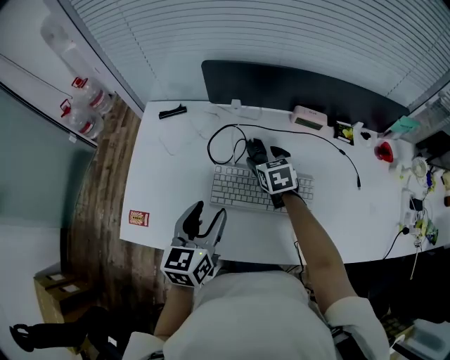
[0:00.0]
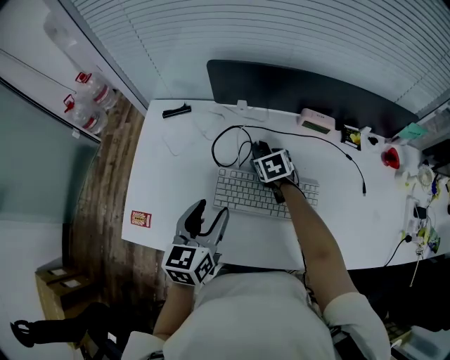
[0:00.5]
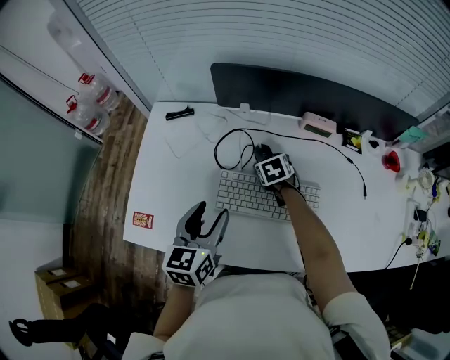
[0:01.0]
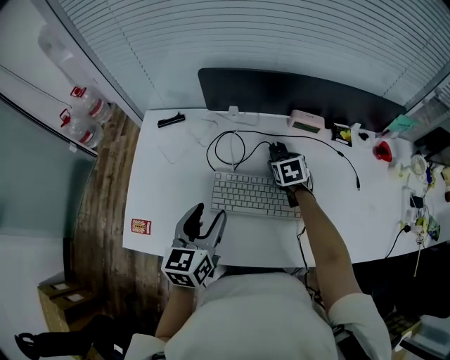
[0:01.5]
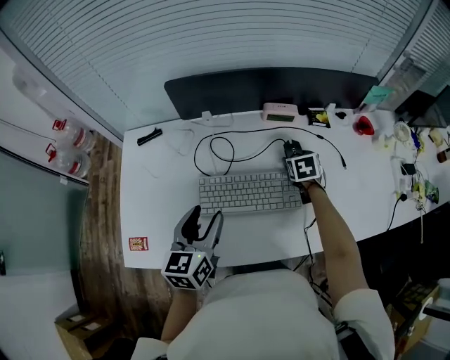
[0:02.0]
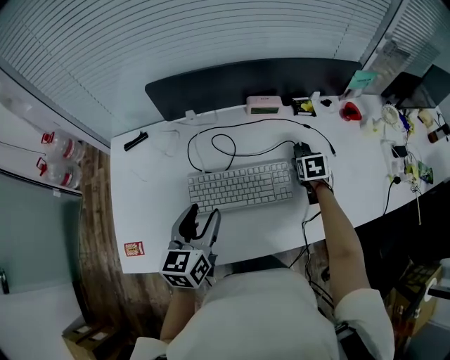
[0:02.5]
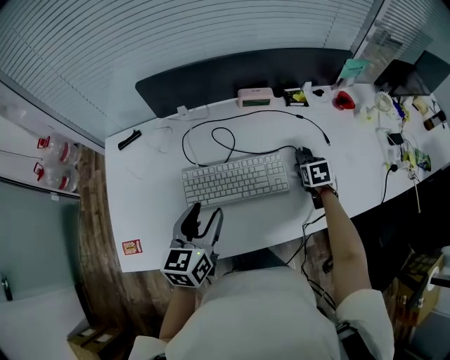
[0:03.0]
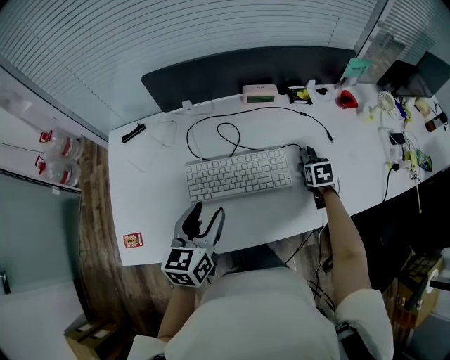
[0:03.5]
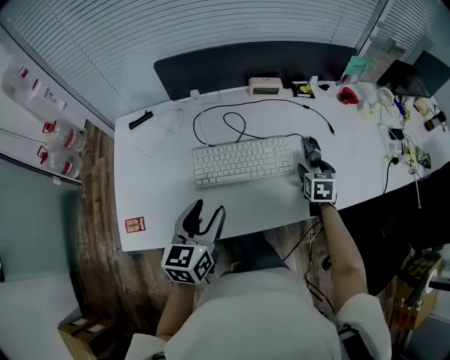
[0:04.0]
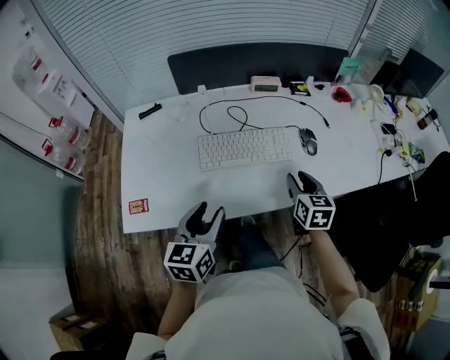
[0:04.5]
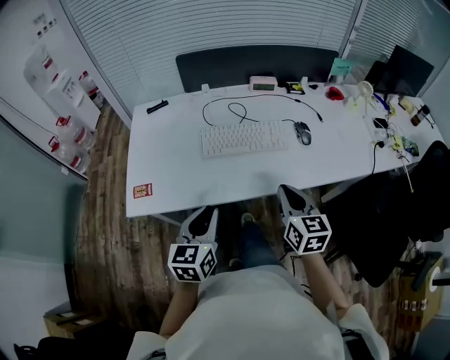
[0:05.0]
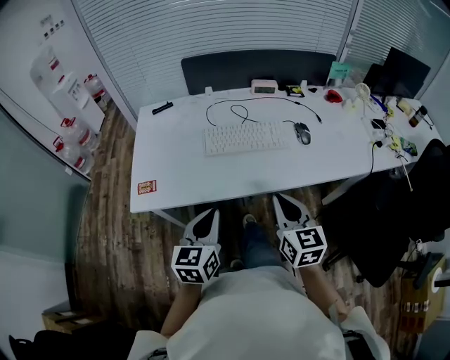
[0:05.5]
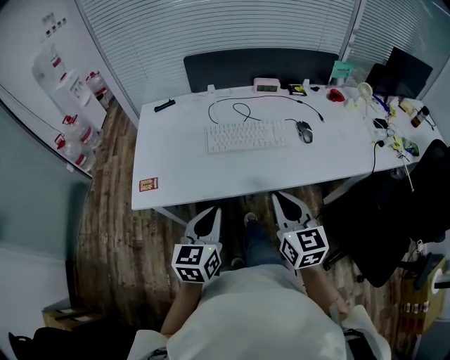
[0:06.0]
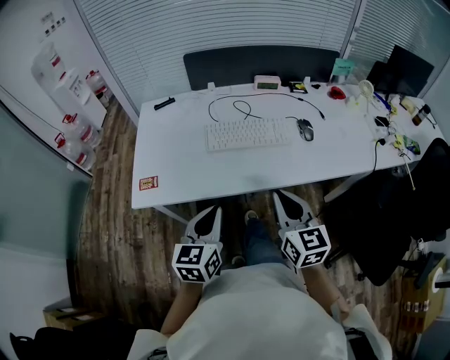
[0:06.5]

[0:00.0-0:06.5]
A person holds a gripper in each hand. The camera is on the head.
0:00.0 to 0:02.0: The right gripper goes approximately 20 cm to the right, and swivels approximately 30 degrees.
0:02.0 to 0:04.5: The left gripper travels backward by approximately 15 cm. Meanwhile the right gripper goes about 30 cm backward, swivels about 30 degrees, and closes its fingers.
0:04.5 to 0:06.5: The left gripper shifts roughly 10 cm backward, and closes its fingers. The right gripper heads backward, upward and to the left, covering roughly 25 cm, turns by roughly 20 degrees, and closes up.

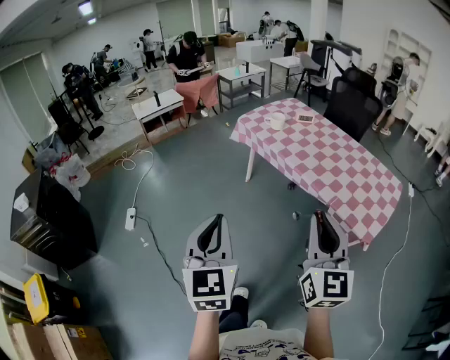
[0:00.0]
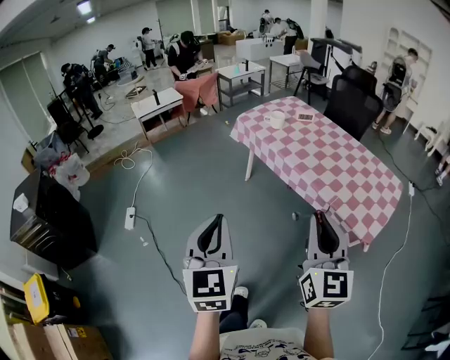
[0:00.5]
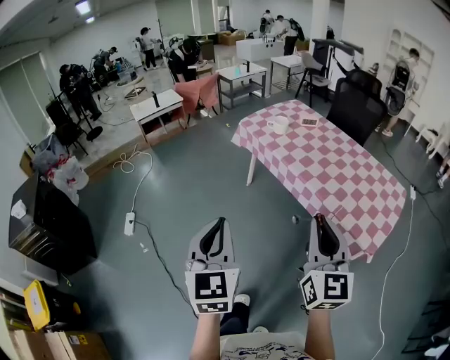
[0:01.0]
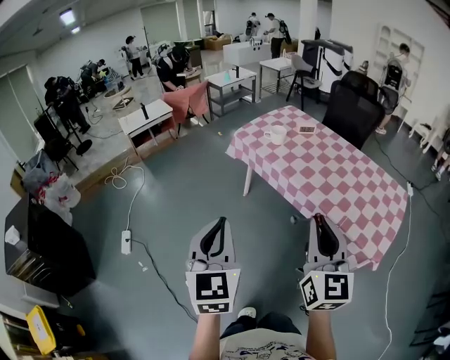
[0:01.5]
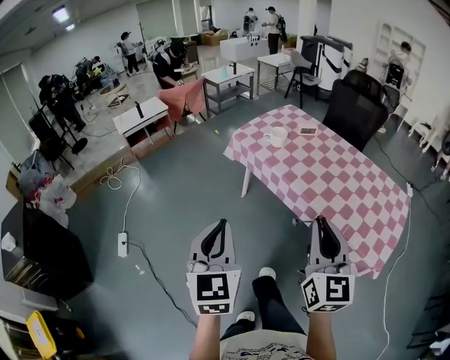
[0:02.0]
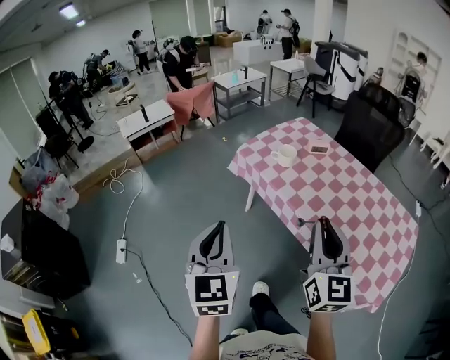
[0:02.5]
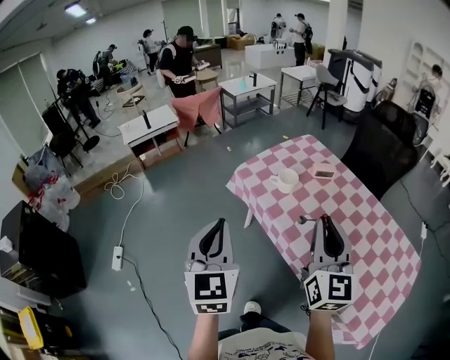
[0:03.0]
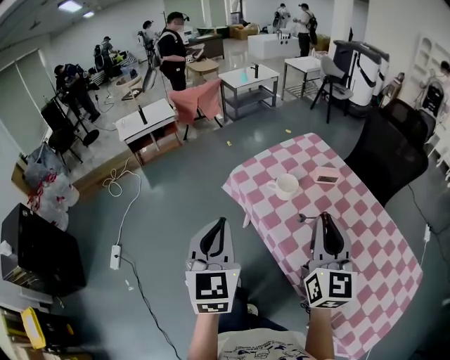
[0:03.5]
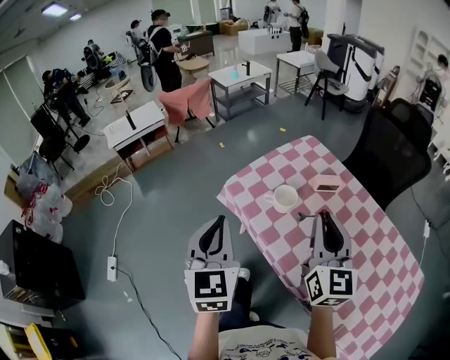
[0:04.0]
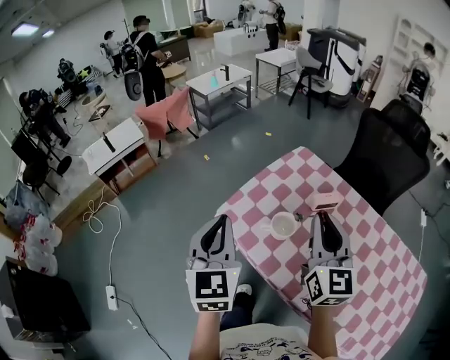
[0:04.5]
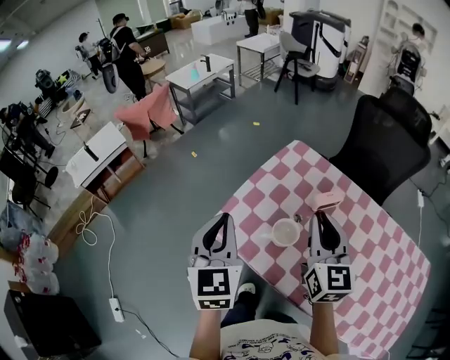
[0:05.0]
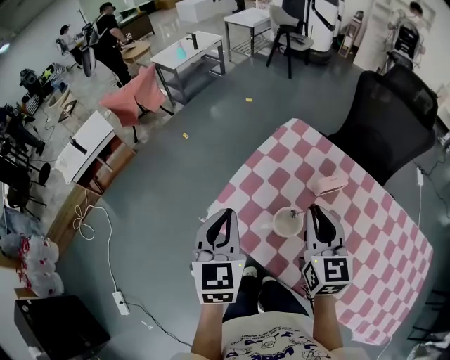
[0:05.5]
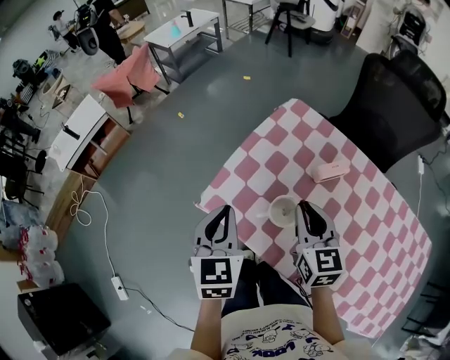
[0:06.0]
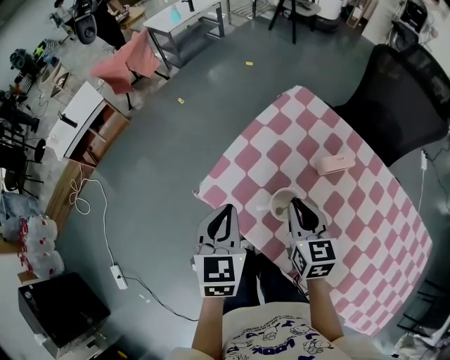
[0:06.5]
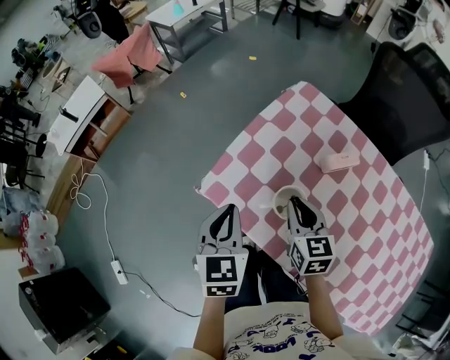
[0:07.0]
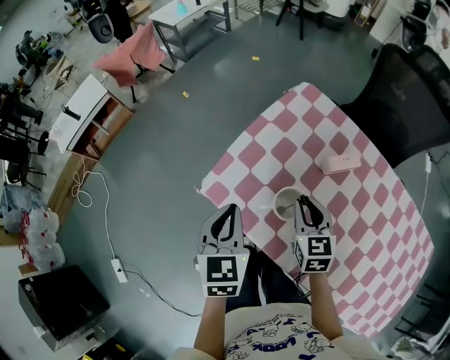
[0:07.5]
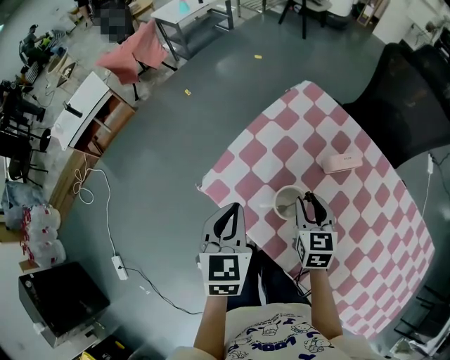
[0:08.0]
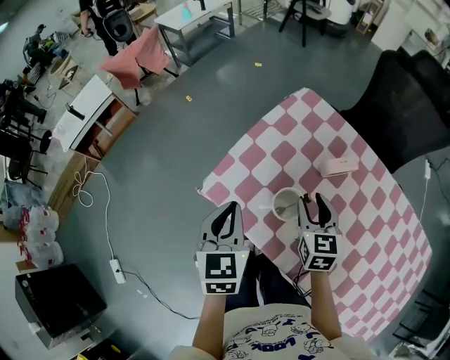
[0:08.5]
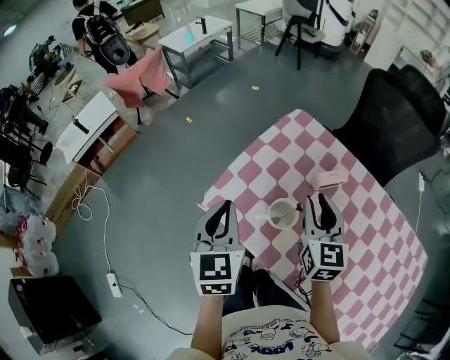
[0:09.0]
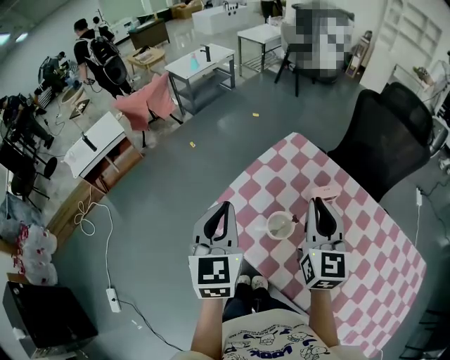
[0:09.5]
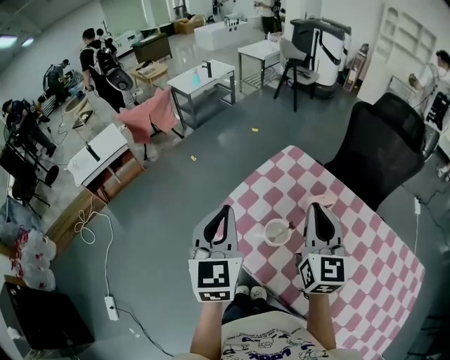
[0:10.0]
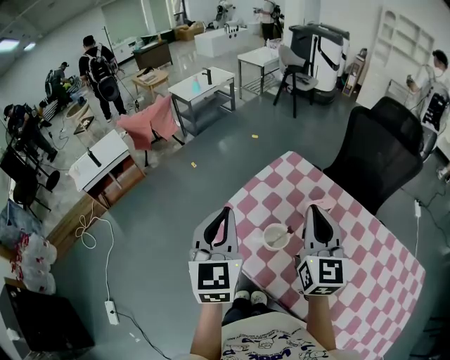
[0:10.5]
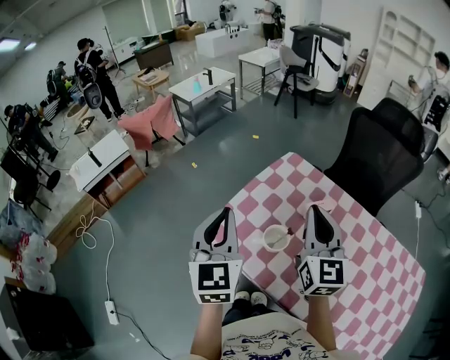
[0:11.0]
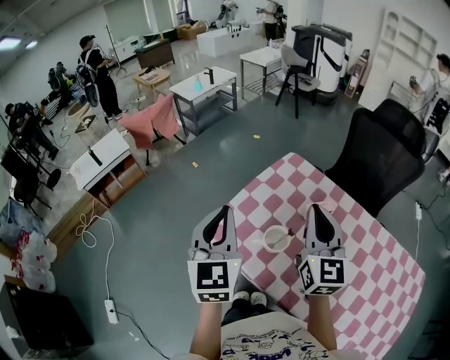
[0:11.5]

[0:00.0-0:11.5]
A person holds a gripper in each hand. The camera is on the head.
0:00.0 to 0:02.0: Both grippers move forward, some 25 cm.
0:02.0 to 0:04.0: The two grippers travel together, forward, some 50 cm.
0:04.0 to 0:06.0: The grippers both shift forward and downward by about 30 cm. The right gripper turns by approximately 20 degrees. Meanwhile the left gripper swivels some 20 degrees.
0:06.0 to 0:07.5: The left gripper travels downward by about 5 cm. The right gripper goes about 10 cm downward.
0:07.5 to 0:09.5: The two grippers go some 20 cm upward. The right gripper swivels some 30 degrees, and opens, then closes once more.
0:09.5 to 0:11.5: The left gripper goes approximately 5 cm upward. Meanwhile the right gripper ends up approximately 5 cm from where it was.

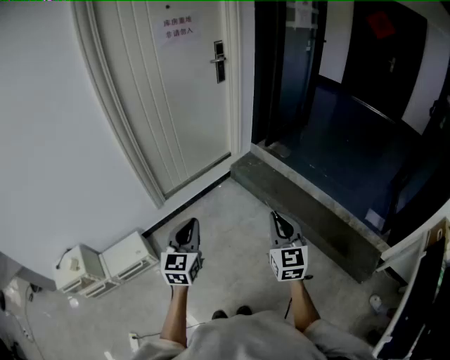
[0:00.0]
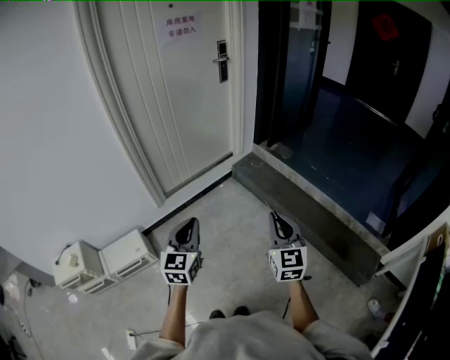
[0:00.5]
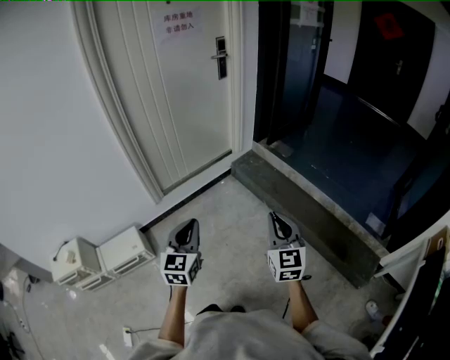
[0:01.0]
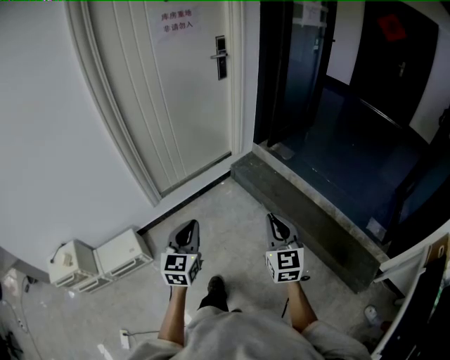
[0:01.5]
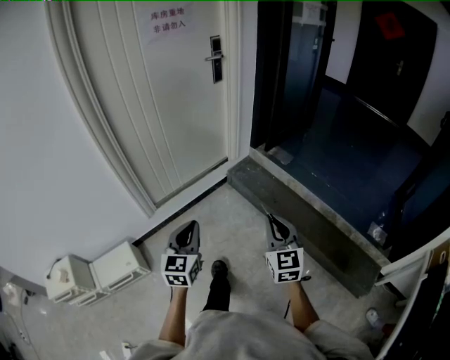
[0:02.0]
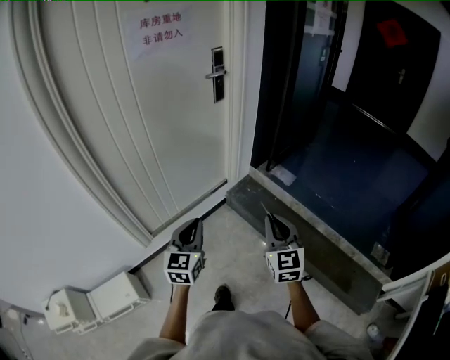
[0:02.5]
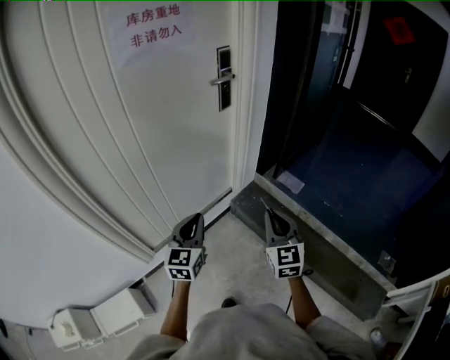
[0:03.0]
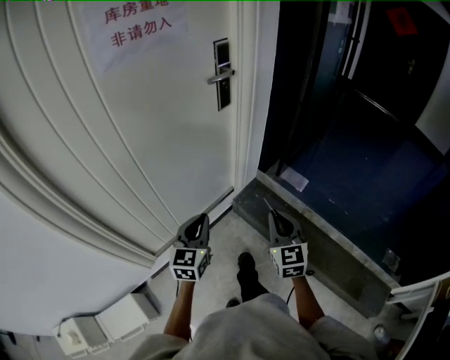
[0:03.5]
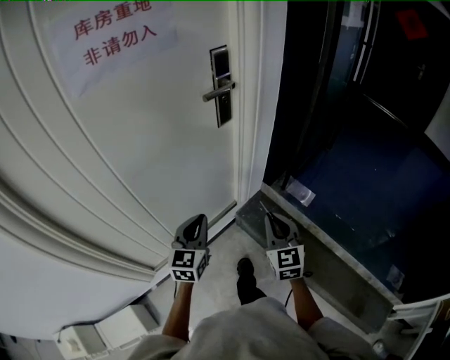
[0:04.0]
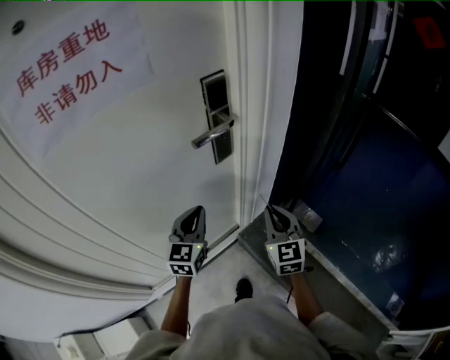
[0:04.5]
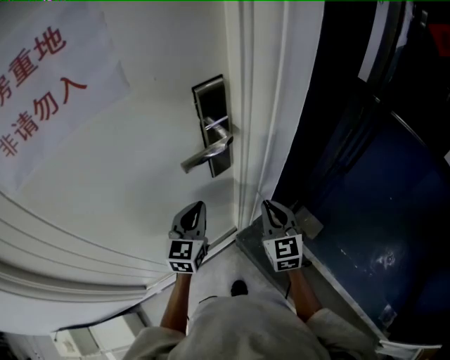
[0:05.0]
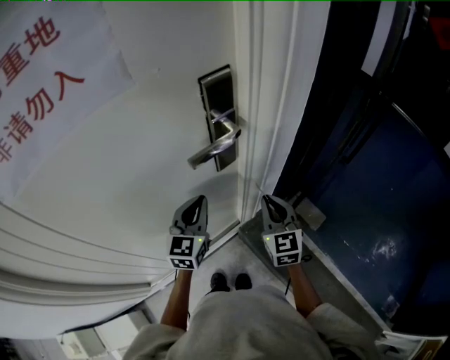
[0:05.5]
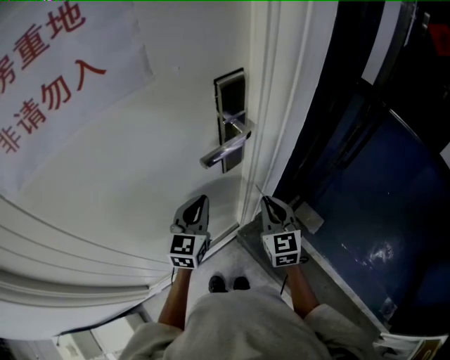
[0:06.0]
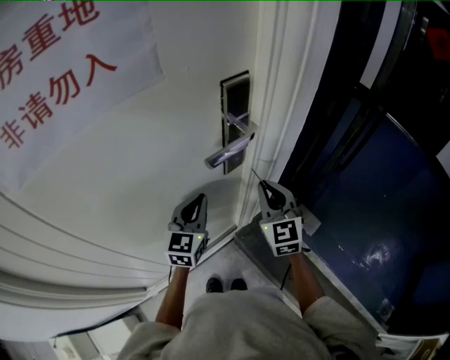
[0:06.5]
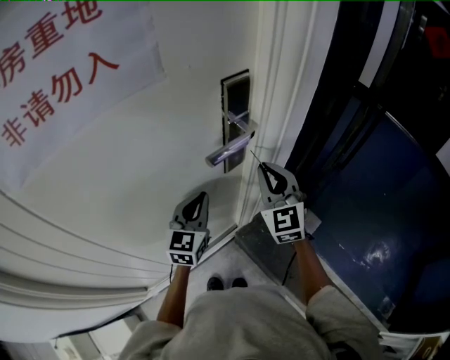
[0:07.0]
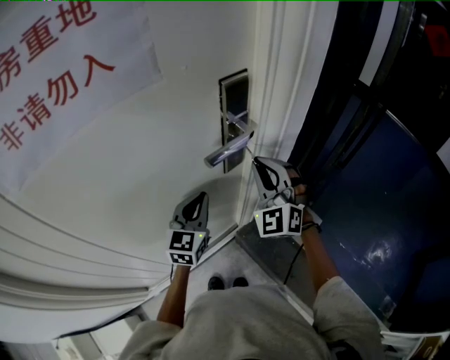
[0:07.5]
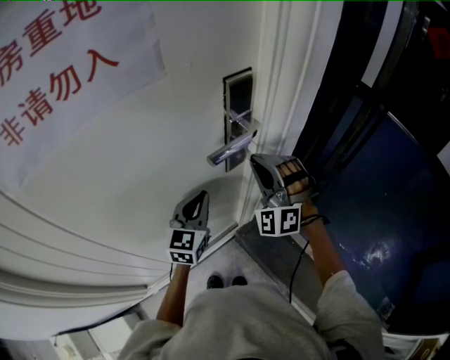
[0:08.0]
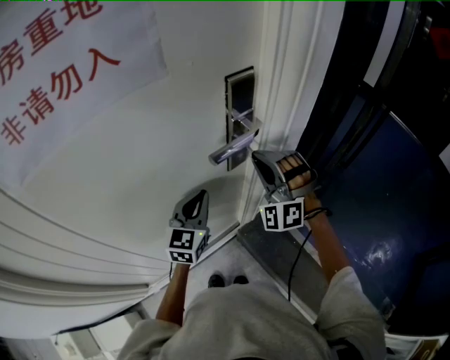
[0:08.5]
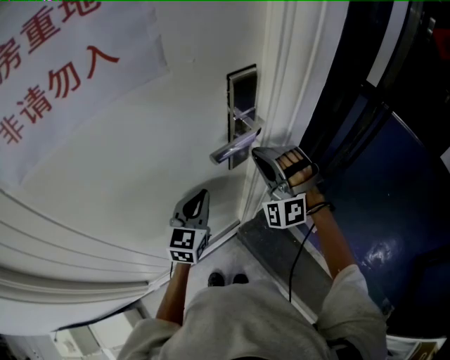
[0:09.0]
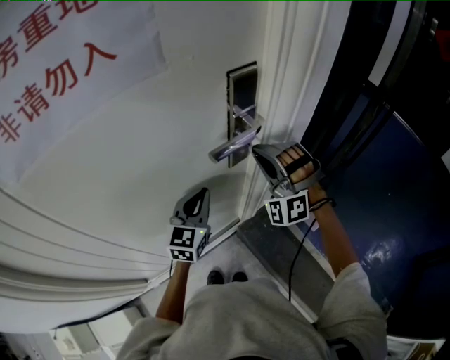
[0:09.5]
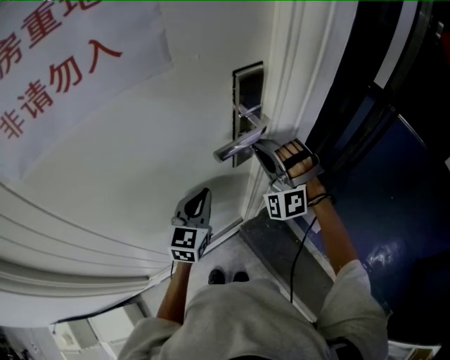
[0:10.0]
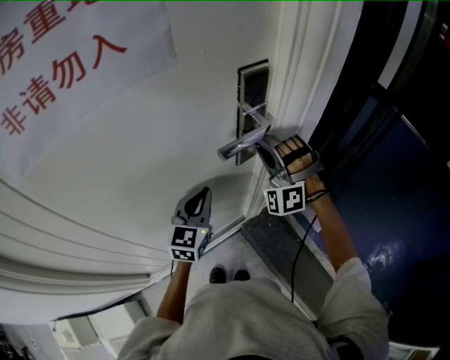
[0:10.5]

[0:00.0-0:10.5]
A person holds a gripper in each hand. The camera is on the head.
0:00.0 to 0:02.0: The grippers both shift forward by approximately 15 cm.
0:02.0 to 0:04.0: The two grippers travel together, forward, about 60 cm.
0:04.0 to 0:06.5: The grippers both shift forward by some 30 cm.
0:06.5 to 0:08.5: The right gripper ends up approximately 5 cm from where it was, and twists some 60 degrees counterclockwise, seen from behind.
0:08.5 to 0:10.5: There are only small adjustments of the grippers.
